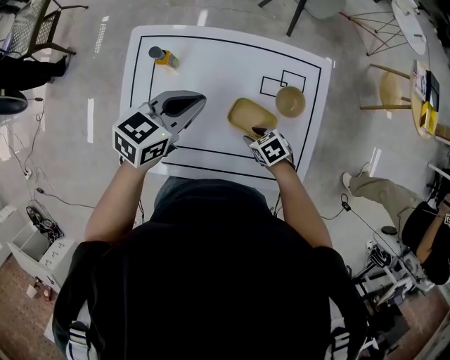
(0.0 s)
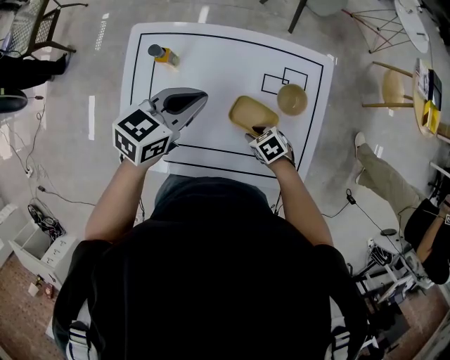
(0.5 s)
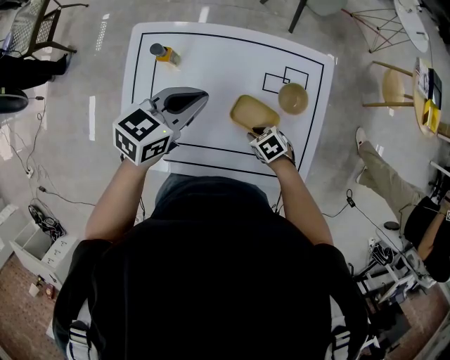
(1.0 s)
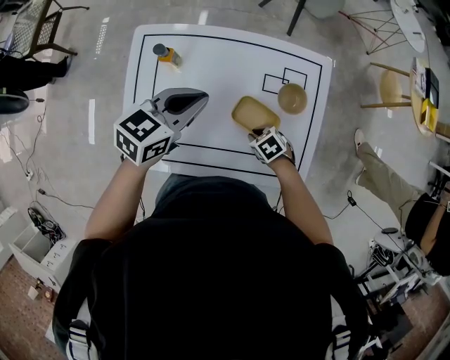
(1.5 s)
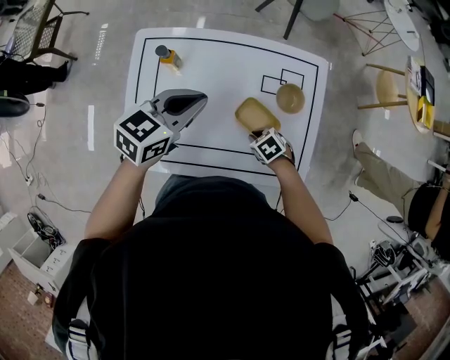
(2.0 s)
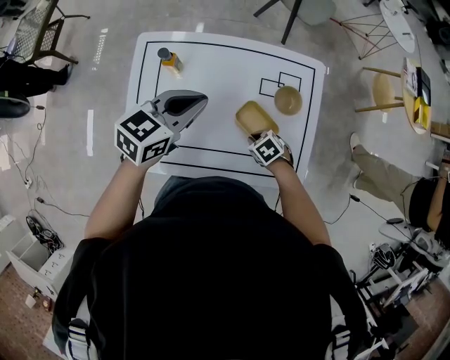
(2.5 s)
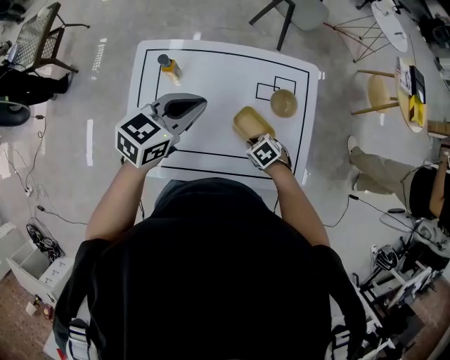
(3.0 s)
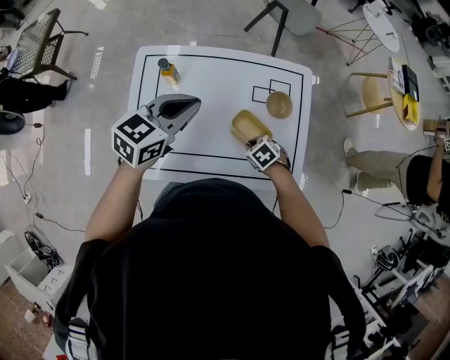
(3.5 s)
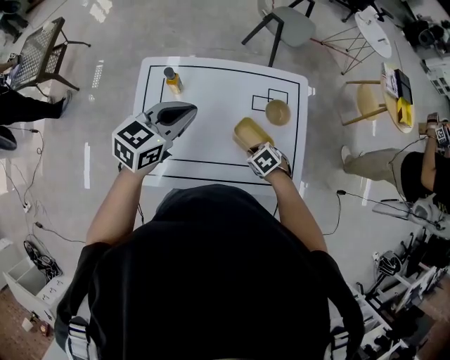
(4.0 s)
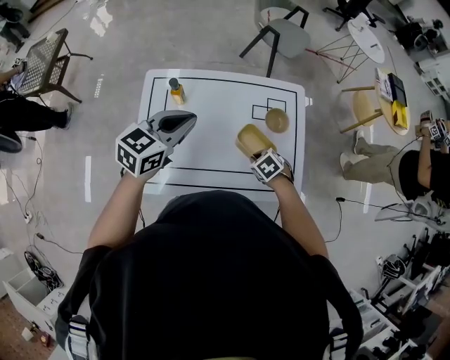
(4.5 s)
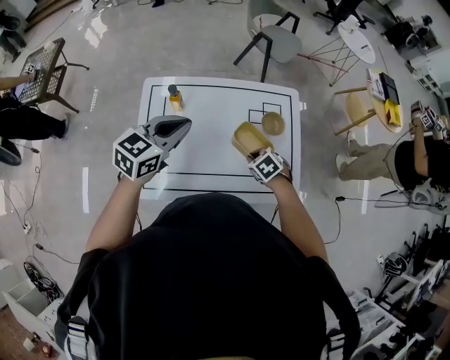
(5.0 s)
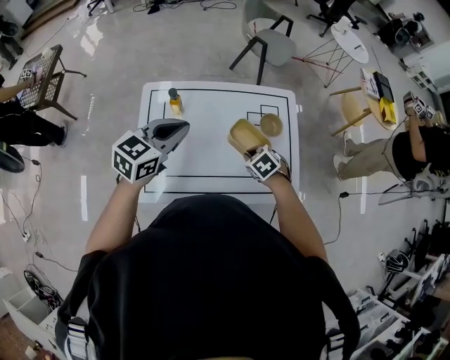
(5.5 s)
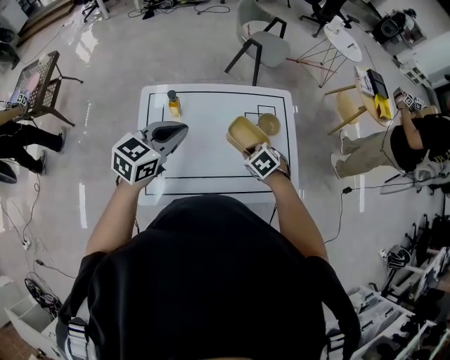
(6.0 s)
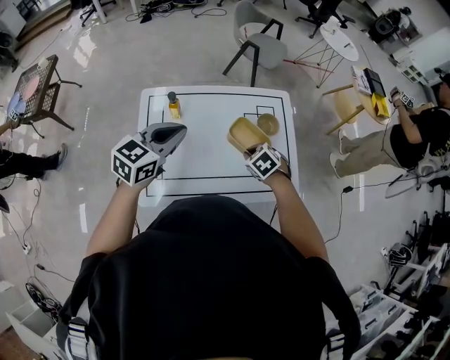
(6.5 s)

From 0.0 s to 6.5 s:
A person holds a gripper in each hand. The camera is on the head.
From 0.0 s to 2.0 s: The right gripper closes.
From 2.0 s to 4.5 s: The two grippers go some 10 cm upward.
From 4.5 s to 6.5 s: The left gripper shifts by approximately 5 cm. The right gripper shifts roughly 10 cm upward.

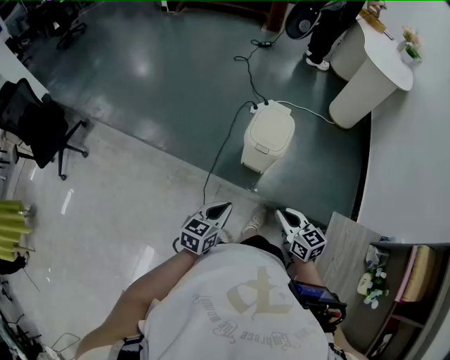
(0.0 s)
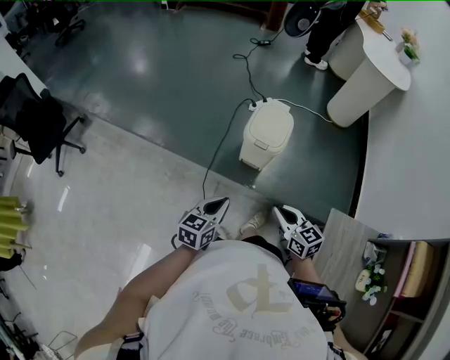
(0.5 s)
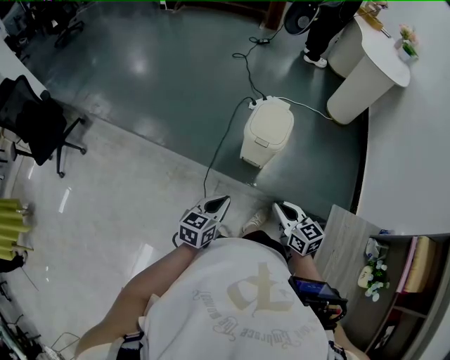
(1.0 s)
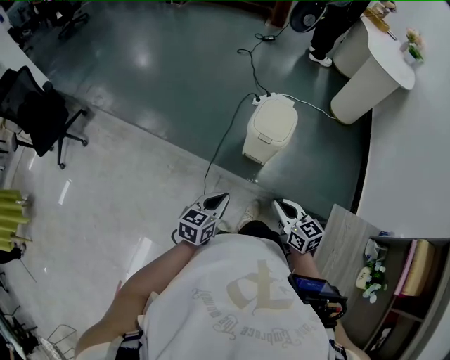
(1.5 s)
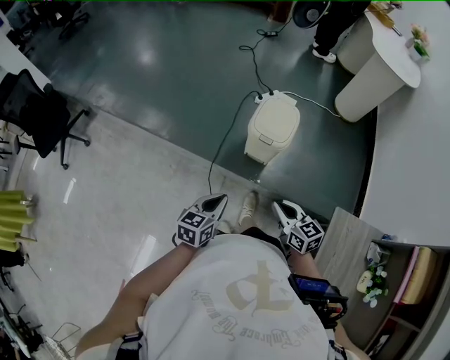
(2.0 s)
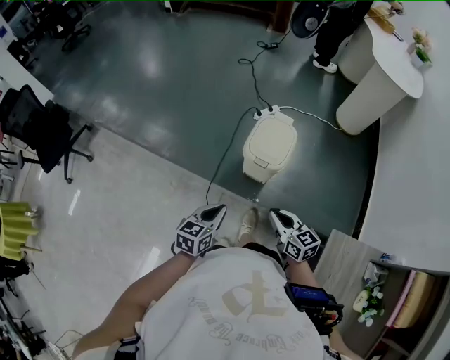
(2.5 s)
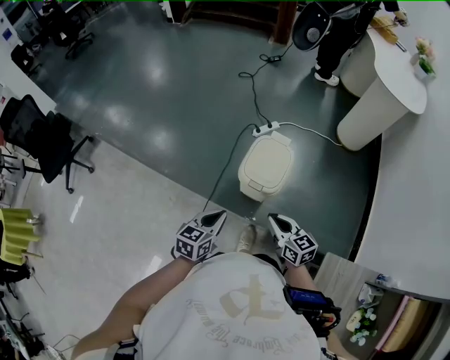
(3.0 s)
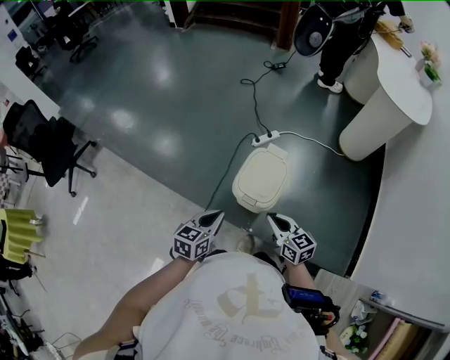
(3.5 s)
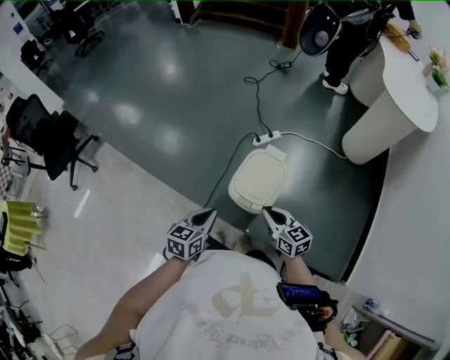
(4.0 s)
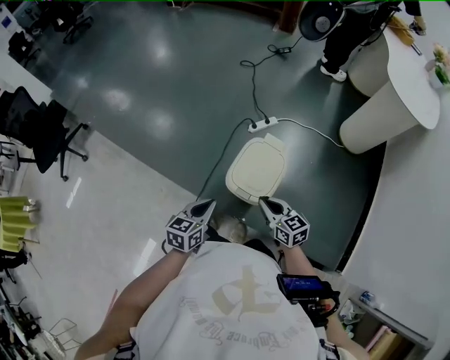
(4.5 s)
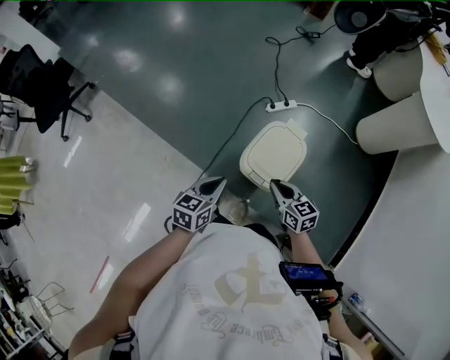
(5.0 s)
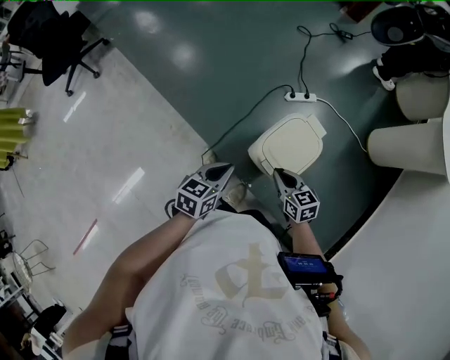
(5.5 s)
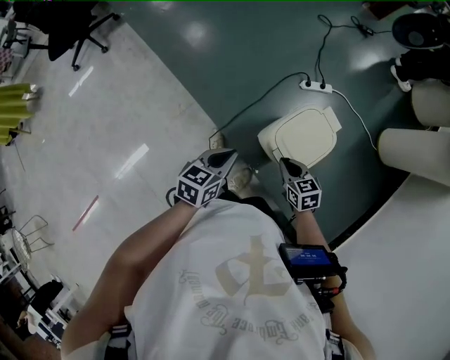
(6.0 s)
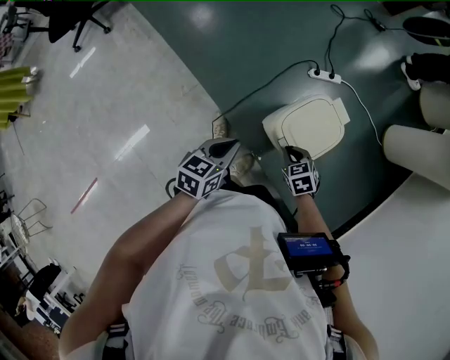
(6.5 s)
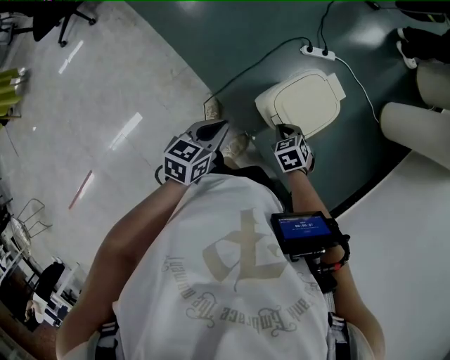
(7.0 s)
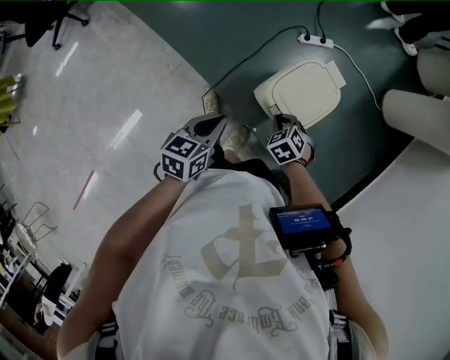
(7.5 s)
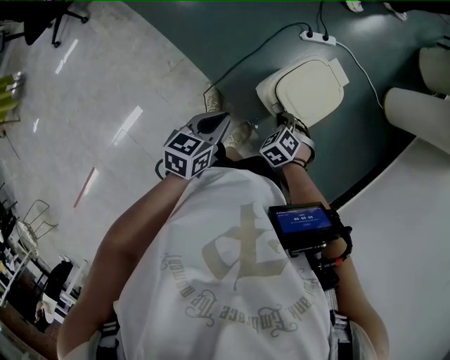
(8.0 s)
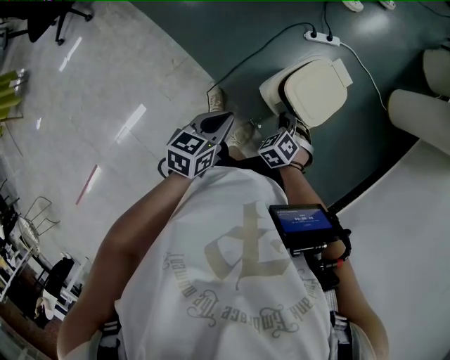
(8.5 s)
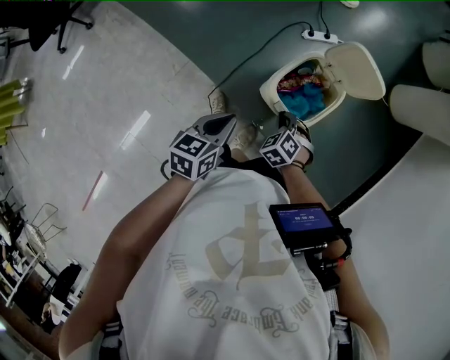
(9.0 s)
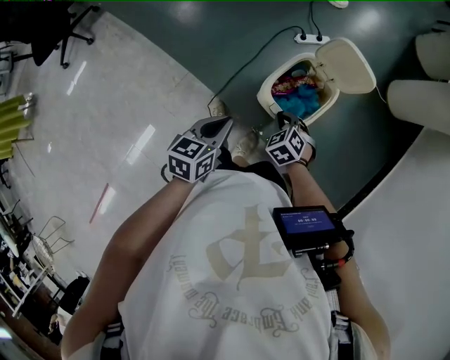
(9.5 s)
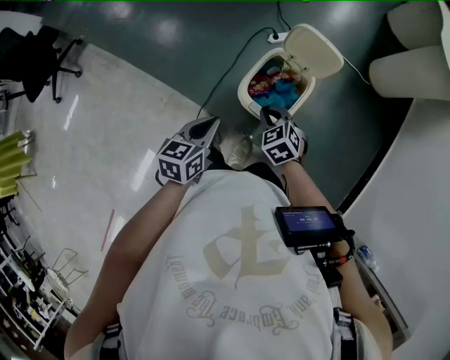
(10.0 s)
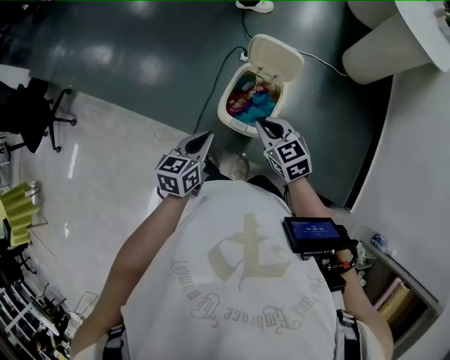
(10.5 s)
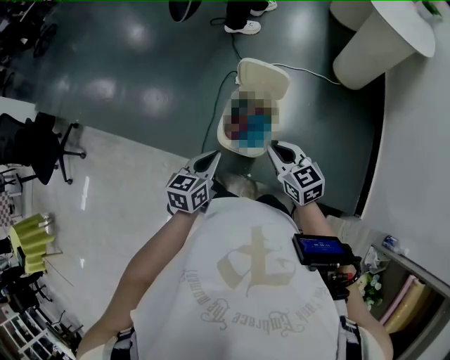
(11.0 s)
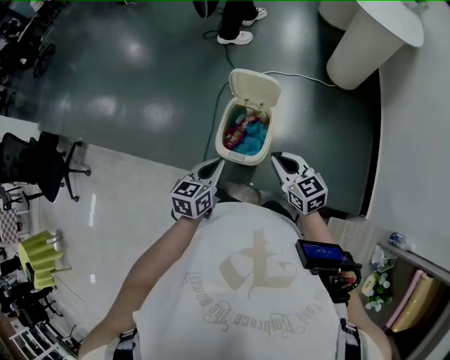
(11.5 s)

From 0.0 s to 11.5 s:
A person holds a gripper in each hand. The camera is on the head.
From 0.0 s to 2.0 s: The grippers move only a little.
From 2.0 s to 4.0 s: The left gripper goes about 25 cm forward and to the right, while the right gripper goes some 30 cm forward.
From 4.0 s to 6.0 s: The right gripper goes approximately 20 cm downward, to the left and forward, and swivels about 30 degrees. Meanwhile the left gripper heads to the left, downward and forward, covering roughly 15 cm.
From 6.0 s to 7.5 s: The right gripper heads downward, covering roughly 5 cm, and rotates some 40 degrees.
From 7.5 s to 9.5 s: The grippers stay close to where they were, moving slightly.
From 9.5 s to 11.5 s: The left gripper heads to the right and upward, covering roughly 15 cm, and swivels approximately 20 degrees. The right gripper travels upward and to the right by about 25 cm, and points its fingers approximately 40 degrees further upward.

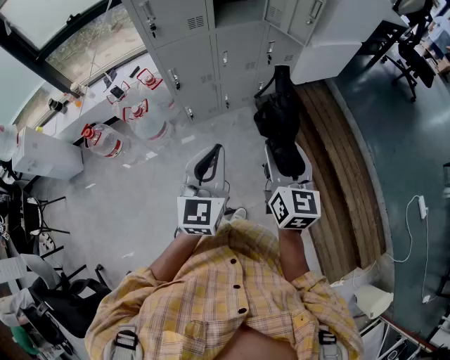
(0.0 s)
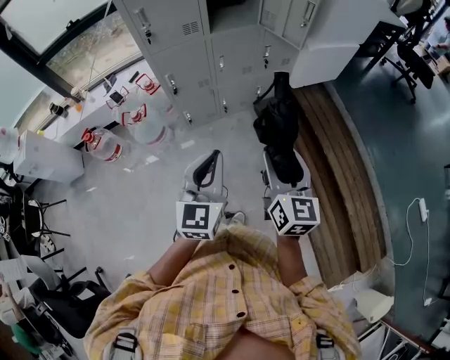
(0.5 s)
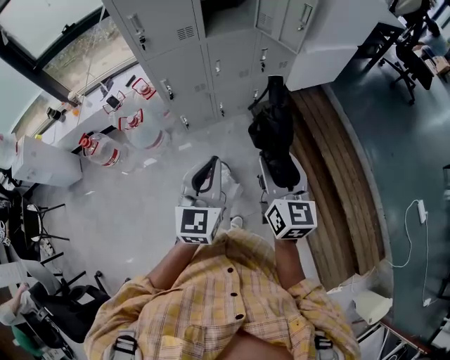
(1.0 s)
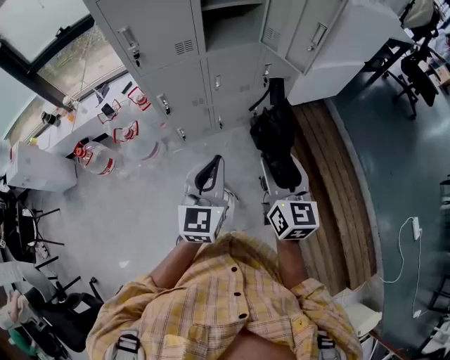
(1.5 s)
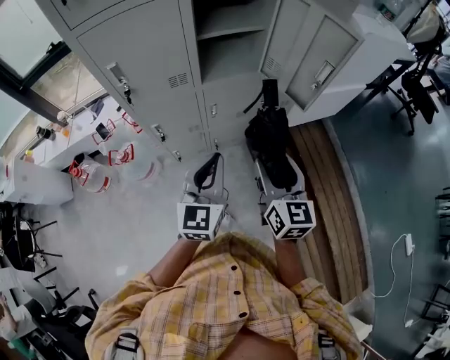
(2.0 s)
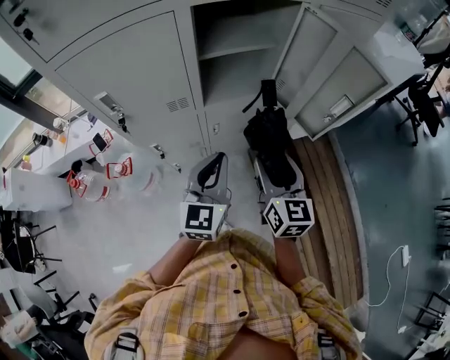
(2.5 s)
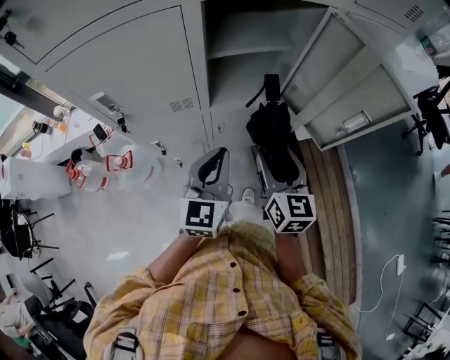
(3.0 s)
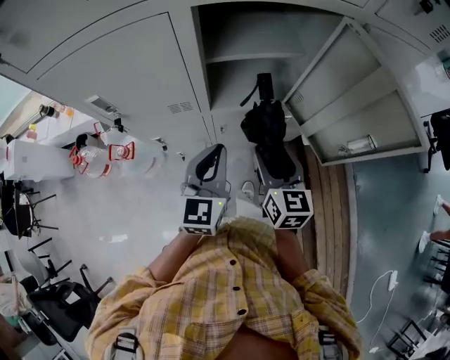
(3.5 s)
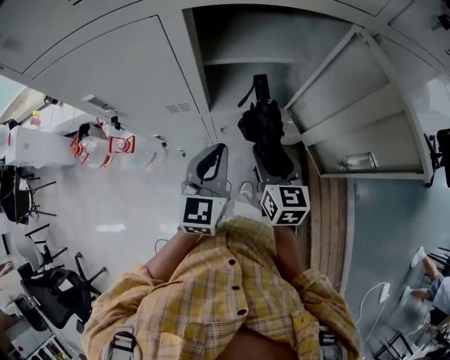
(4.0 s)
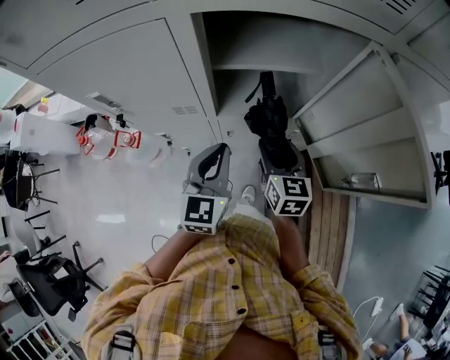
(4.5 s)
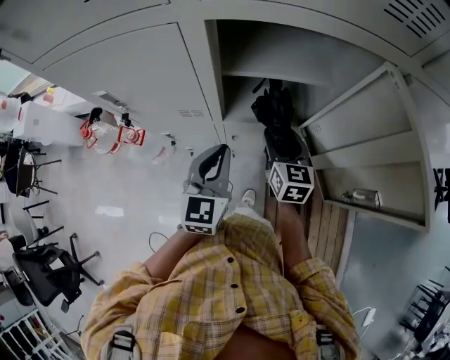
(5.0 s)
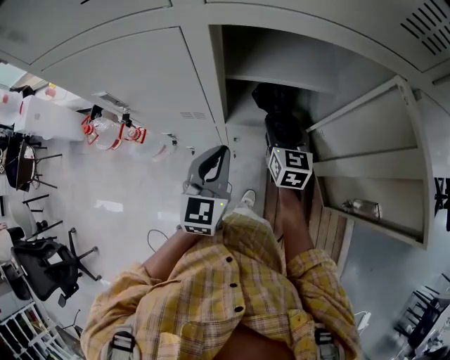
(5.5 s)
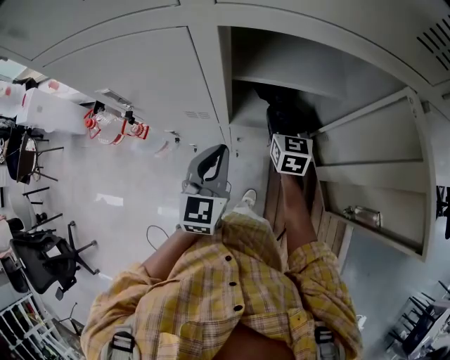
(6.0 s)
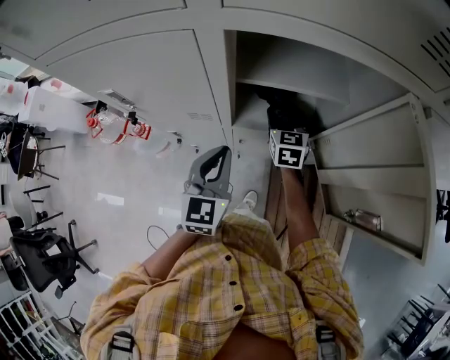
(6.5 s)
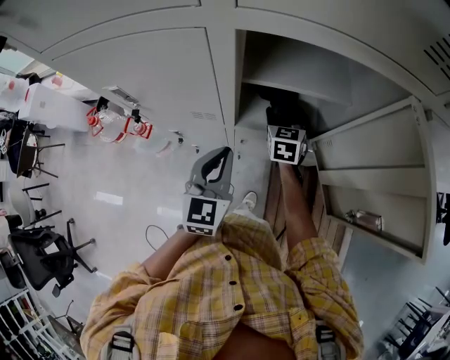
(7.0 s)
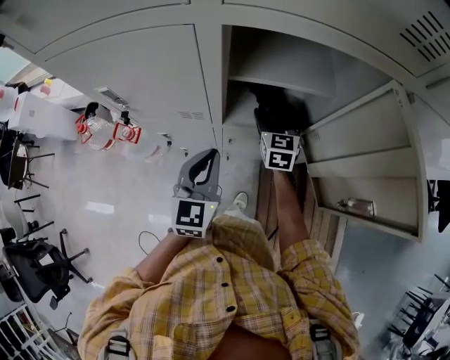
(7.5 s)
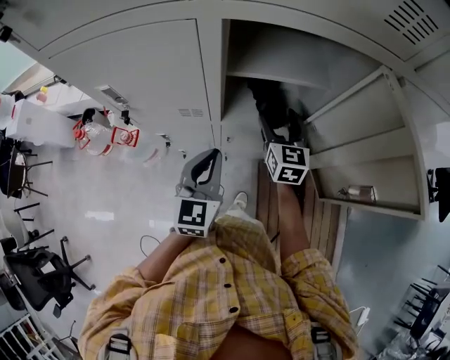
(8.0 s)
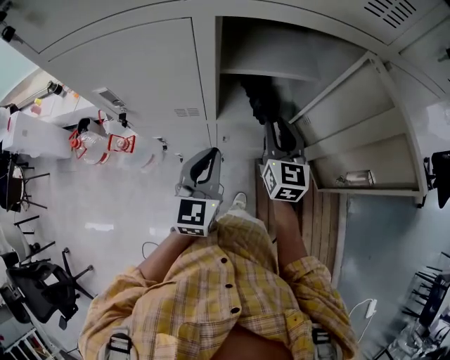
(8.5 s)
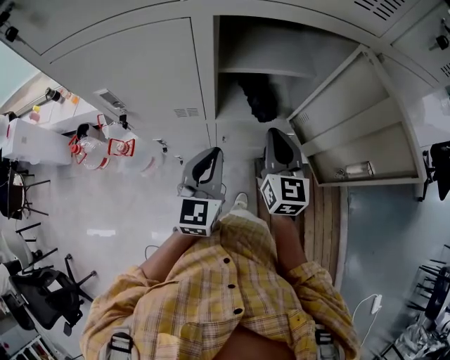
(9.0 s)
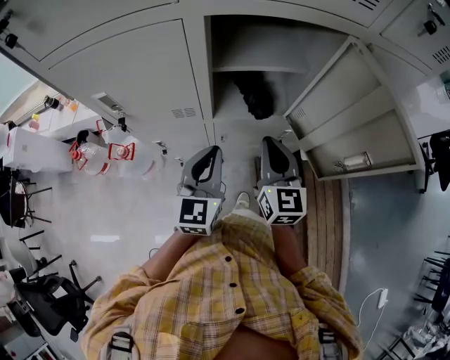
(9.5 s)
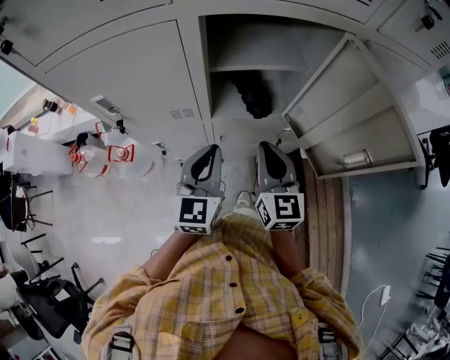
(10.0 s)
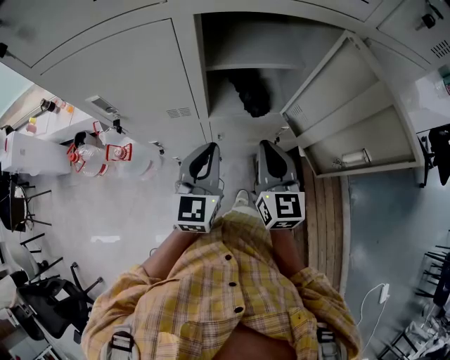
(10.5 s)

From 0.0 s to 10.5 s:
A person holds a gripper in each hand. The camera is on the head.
From 0.0 s to 2.0 s: The grippers both shift forward by some 30 cm.
From 2.0 s to 4.0 s: The two grippers go approximately 25 cm forward.
From 4.0 s to 6.5 s: The left gripper ends up some 5 cm from where it was. The right gripper travels forward by roughly 20 cm.
From 6.5 s to 8.5 s: The right gripper goes roughly 15 cm backward and upward, and closes up.
From 8.5 s to 10.5 s: The right gripper shifts roughly 10 cm backward.
